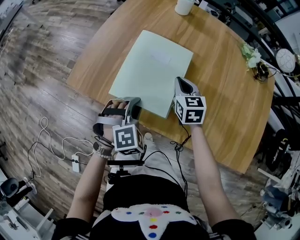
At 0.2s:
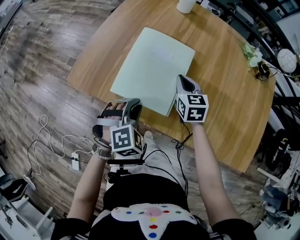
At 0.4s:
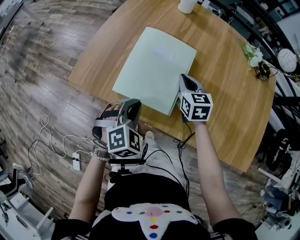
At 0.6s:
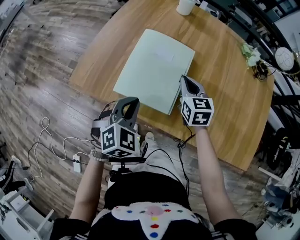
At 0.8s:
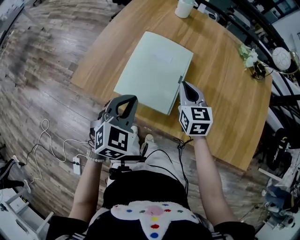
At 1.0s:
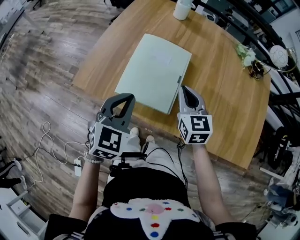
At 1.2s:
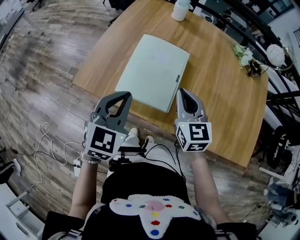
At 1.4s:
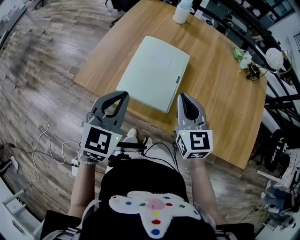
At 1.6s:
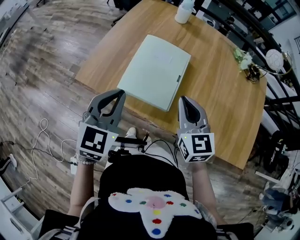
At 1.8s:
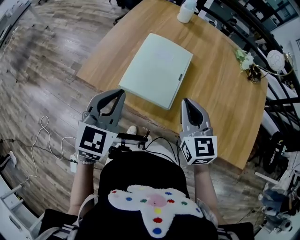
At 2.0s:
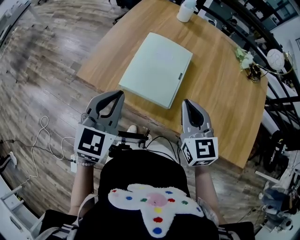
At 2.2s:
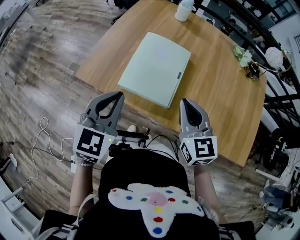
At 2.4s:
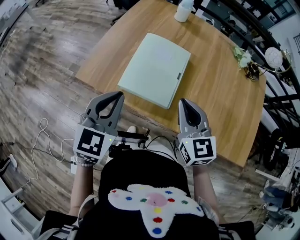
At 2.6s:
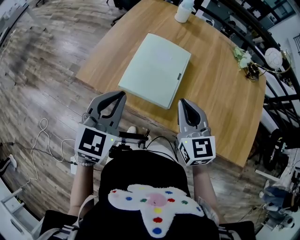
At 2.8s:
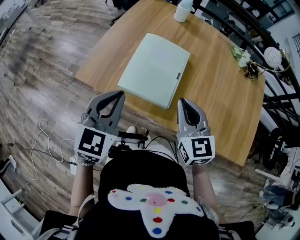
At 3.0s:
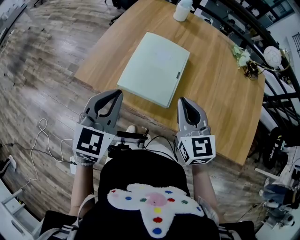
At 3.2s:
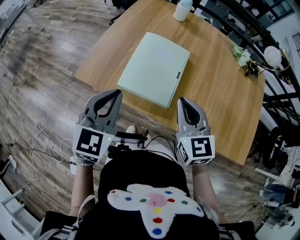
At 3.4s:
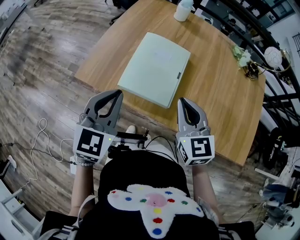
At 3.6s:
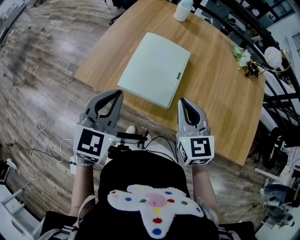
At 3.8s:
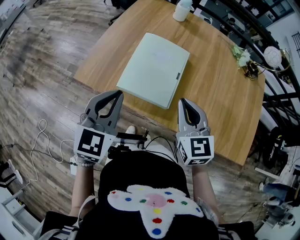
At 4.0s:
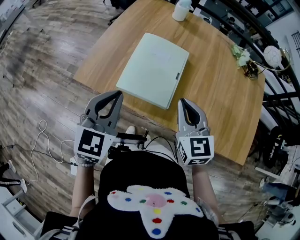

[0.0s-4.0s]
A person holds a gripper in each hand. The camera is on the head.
0.0s to 1.4s: The left gripper goes some 15 cm upward, swivels roughly 50 degrees, and closes, while the right gripper shifts approximately 20 cm upward and backward.
1.4s to 2.6s: There are only small adjustments of the grippers.
2.6s to 4.0s: Both grippers stay about where they are.

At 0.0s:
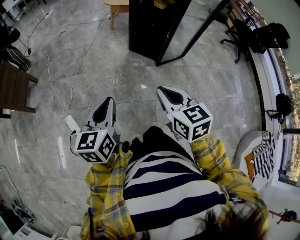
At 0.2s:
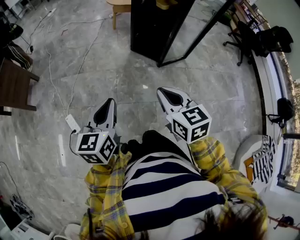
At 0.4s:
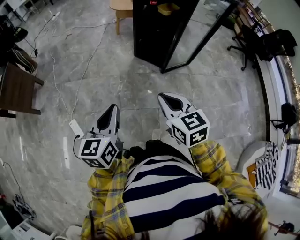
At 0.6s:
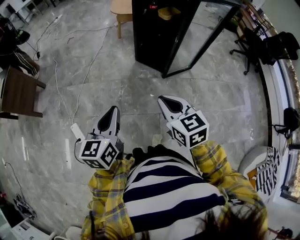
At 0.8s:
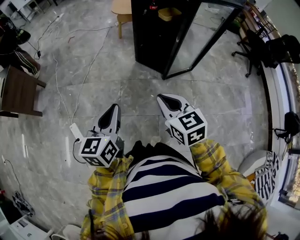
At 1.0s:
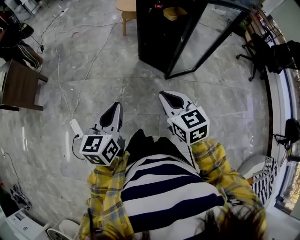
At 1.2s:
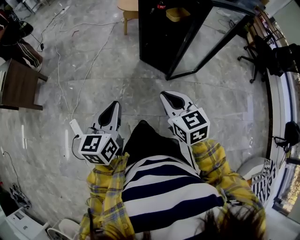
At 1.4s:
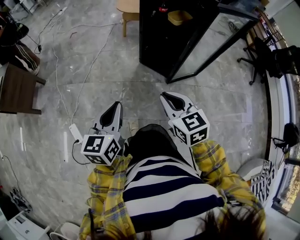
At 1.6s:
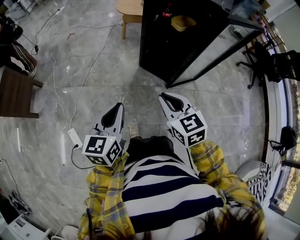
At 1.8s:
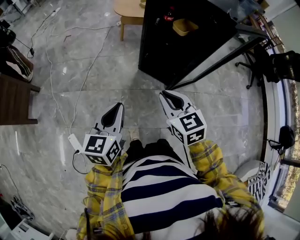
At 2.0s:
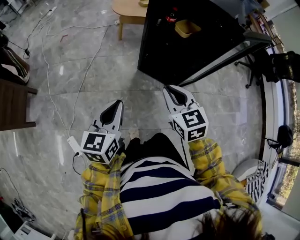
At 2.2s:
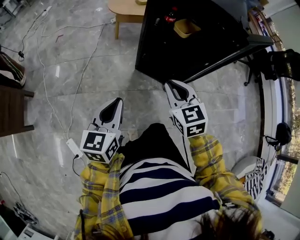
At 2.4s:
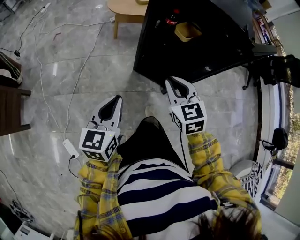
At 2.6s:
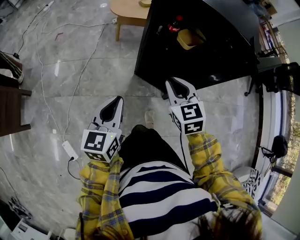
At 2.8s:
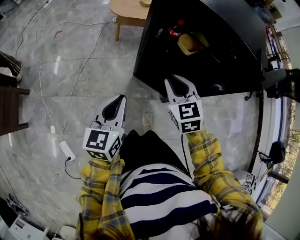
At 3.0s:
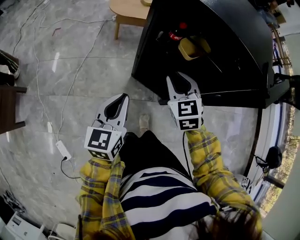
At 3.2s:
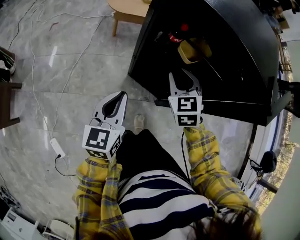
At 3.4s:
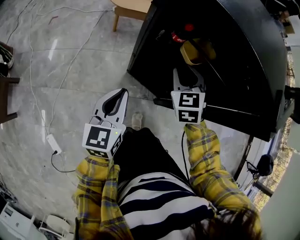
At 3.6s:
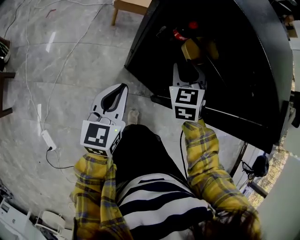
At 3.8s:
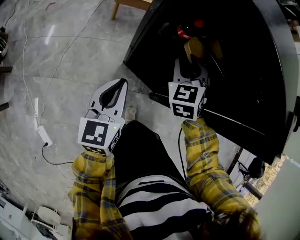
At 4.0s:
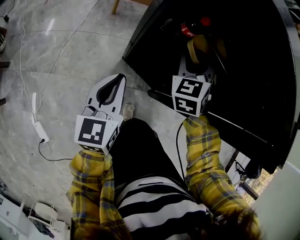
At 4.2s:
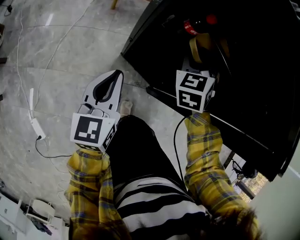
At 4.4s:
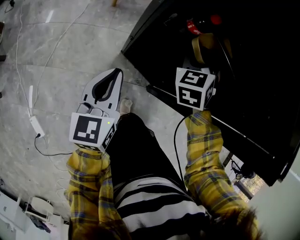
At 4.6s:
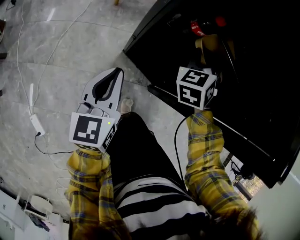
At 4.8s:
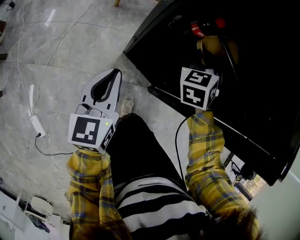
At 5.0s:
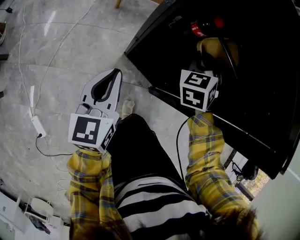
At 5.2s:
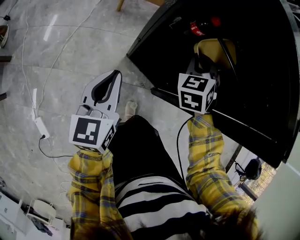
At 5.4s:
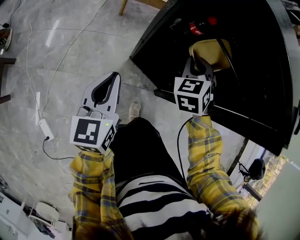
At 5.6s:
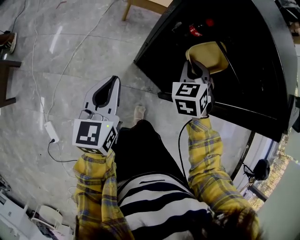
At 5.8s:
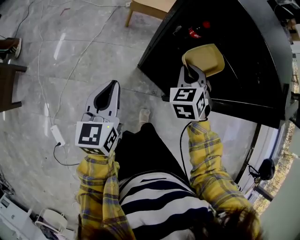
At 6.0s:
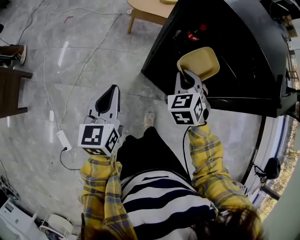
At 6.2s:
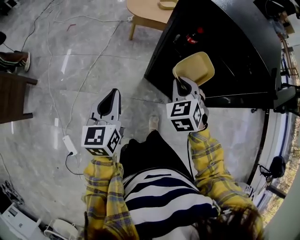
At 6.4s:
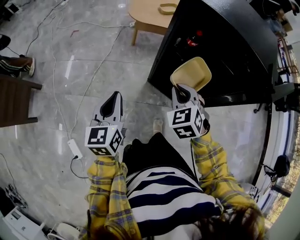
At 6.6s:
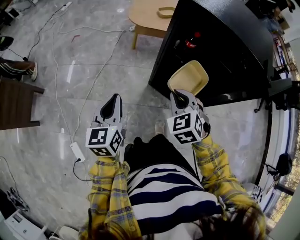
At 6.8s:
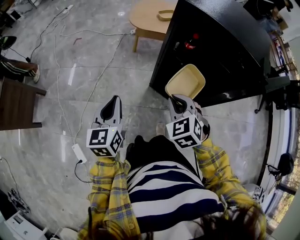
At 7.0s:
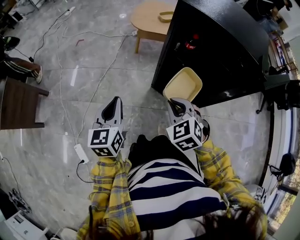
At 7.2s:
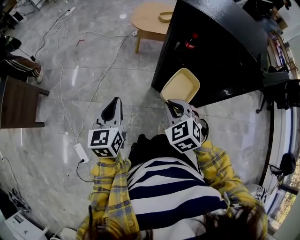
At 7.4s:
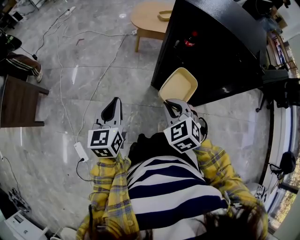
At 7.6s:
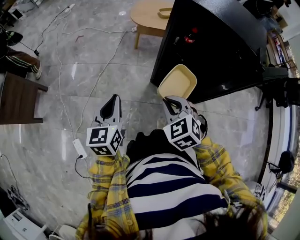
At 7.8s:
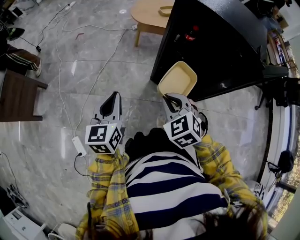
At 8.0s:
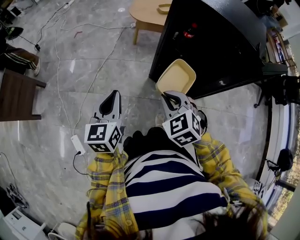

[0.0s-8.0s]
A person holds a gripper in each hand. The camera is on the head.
0.0s to 1.6s: The two grippers go about 20 cm forward.
1.6s to 3.2s: Both grippers travel together forward, some 35 cm. The right gripper rotates roughly 20 degrees.
3.2s to 4.8s: The left gripper moves downward and forward, about 10 cm, while the right gripper travels forward and downward by about 15 cm, and changes its angle by approximately 20 degrees.
4.8s to 6.4s: The left gripper heads backward, upward and to the left, covering some 20 cm, while the right gripper shifts some 25 cm backward, to the left and upward.
6.4s to 8.0s: The right gripper is displaced backward and to the left by roughly 10 cm; the left gripper travels backward by about 5 cm.

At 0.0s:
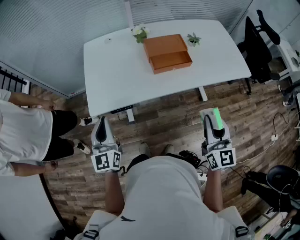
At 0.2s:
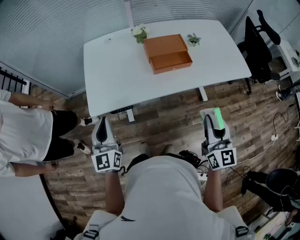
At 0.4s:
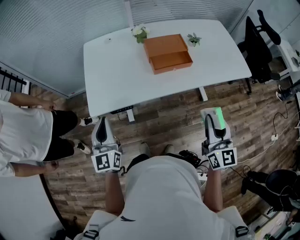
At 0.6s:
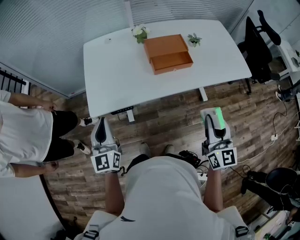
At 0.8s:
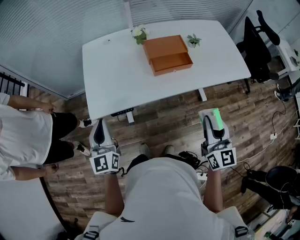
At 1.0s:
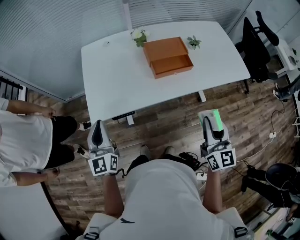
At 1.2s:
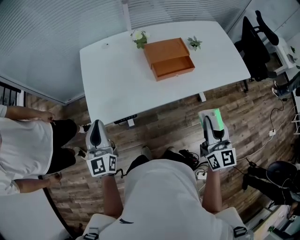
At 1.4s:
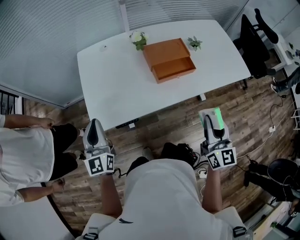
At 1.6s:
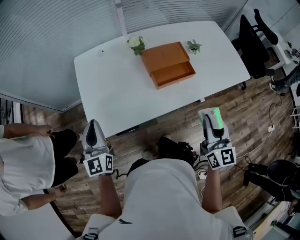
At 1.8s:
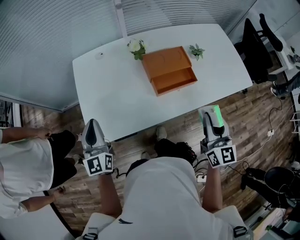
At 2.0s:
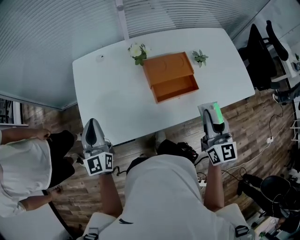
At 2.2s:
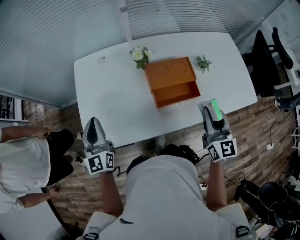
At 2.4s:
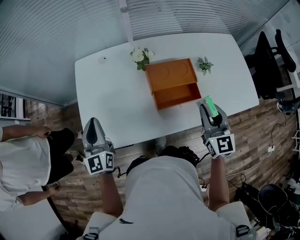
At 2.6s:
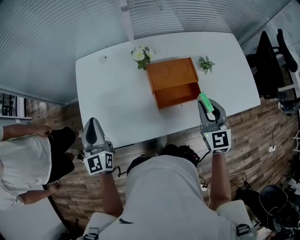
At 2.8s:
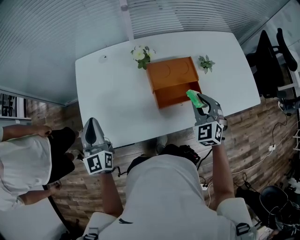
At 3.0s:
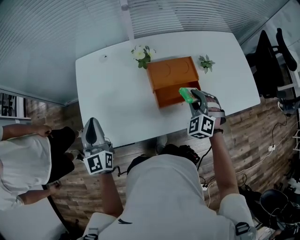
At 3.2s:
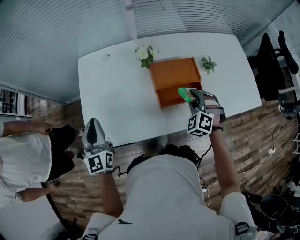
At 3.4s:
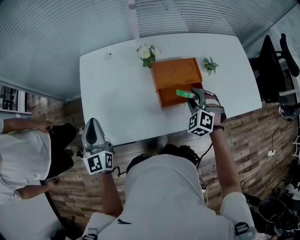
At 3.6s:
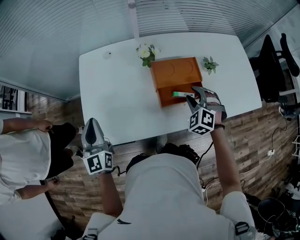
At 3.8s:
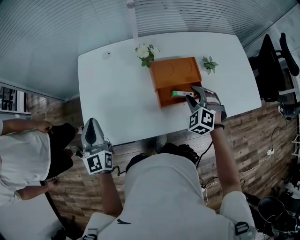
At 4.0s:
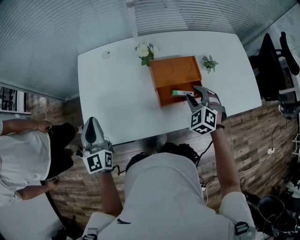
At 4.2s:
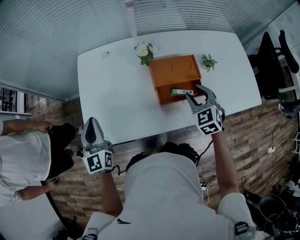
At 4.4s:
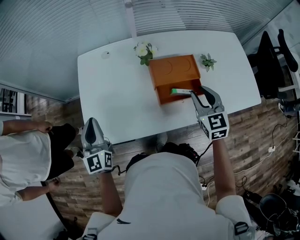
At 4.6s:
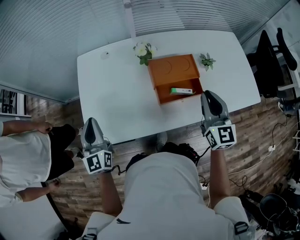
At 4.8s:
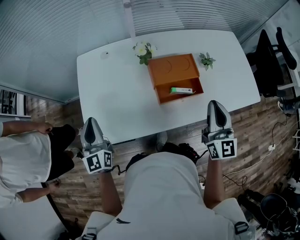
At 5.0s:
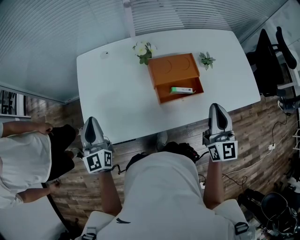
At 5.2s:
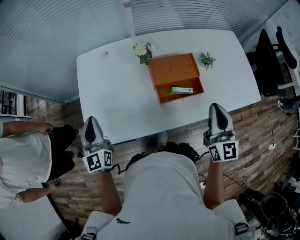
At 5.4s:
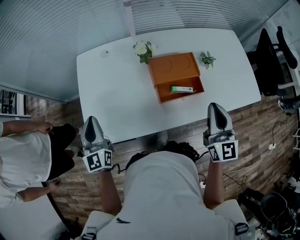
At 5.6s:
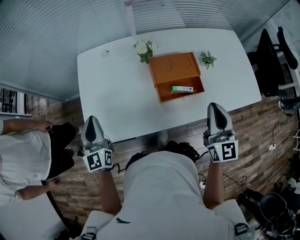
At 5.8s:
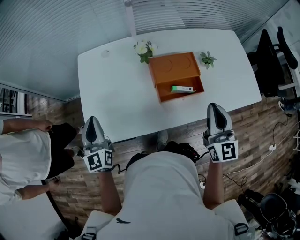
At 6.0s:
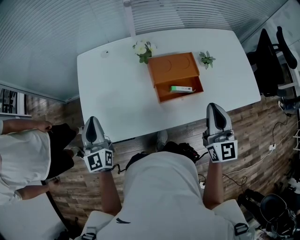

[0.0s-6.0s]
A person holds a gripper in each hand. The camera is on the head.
0.0s to 1.6s: The left gripper is displaced forward and to the left by roughly 15 cm. The right gripper goes about 10 cm forward.
1.6s to 3.0s: The right gripper is displaced forward and downward by about 25 cm, and twists some 70 degrees counterclockwise, seen from behind, while the left gripper travels forward by roughly 10 cm.
3.0s to 4.4s: The right gripper heads upward, covering approximately 5 cm, and twists some 40 degrees clockwise, seen from behind.
4.4s to 6.0s: The right gripper shifts roughly 10 cm backward and upward, rotates roughly 30 degrees, and closes its fingers.

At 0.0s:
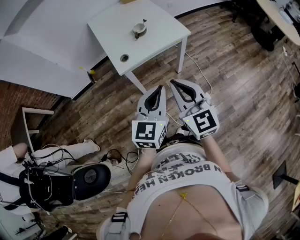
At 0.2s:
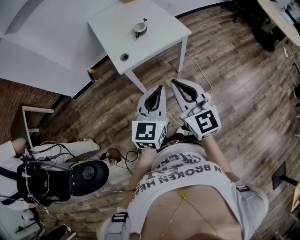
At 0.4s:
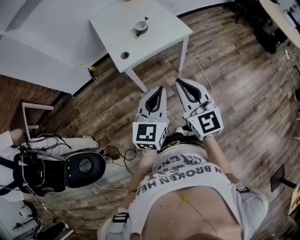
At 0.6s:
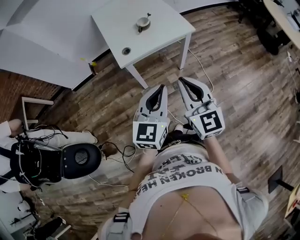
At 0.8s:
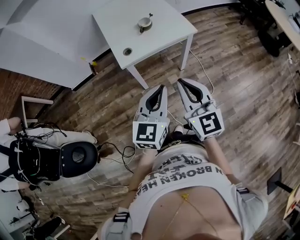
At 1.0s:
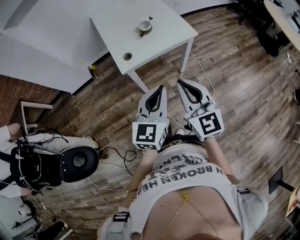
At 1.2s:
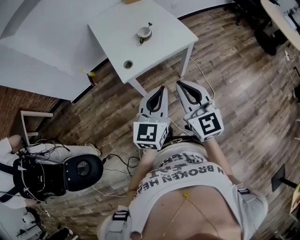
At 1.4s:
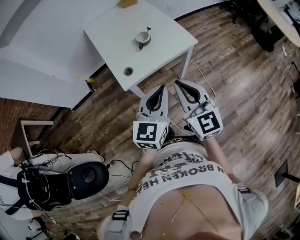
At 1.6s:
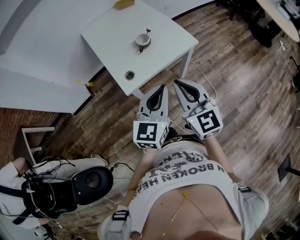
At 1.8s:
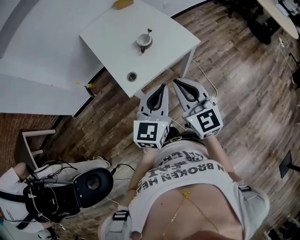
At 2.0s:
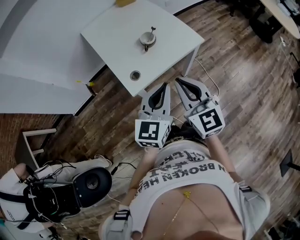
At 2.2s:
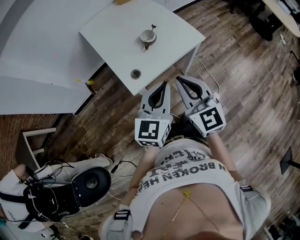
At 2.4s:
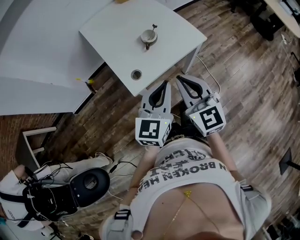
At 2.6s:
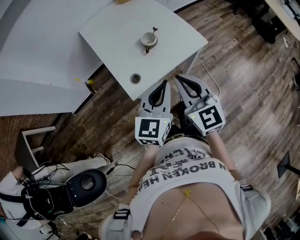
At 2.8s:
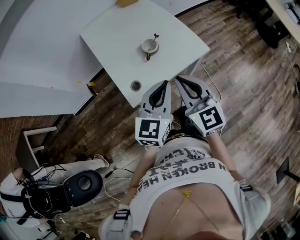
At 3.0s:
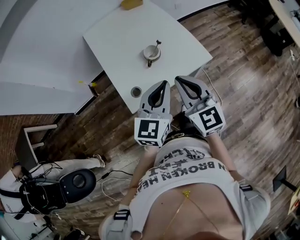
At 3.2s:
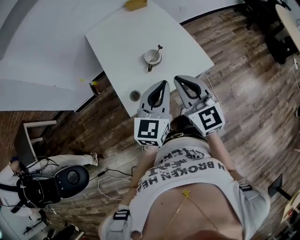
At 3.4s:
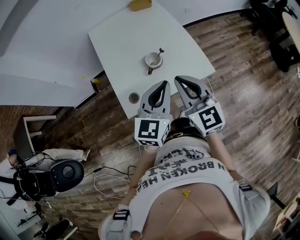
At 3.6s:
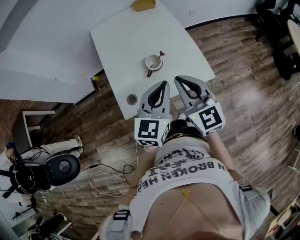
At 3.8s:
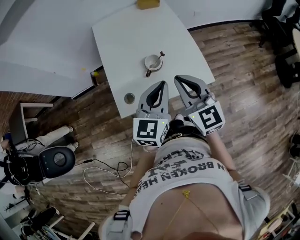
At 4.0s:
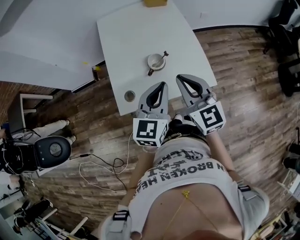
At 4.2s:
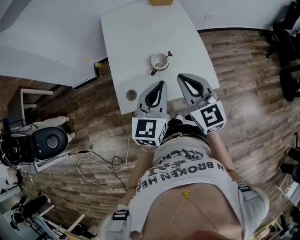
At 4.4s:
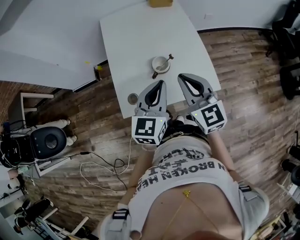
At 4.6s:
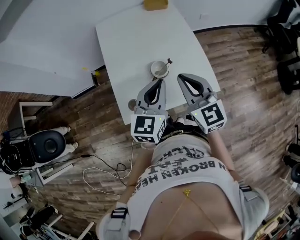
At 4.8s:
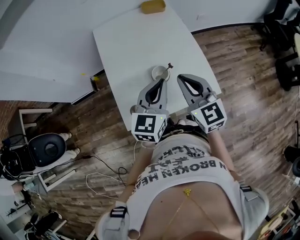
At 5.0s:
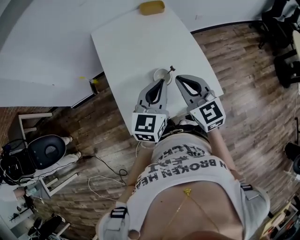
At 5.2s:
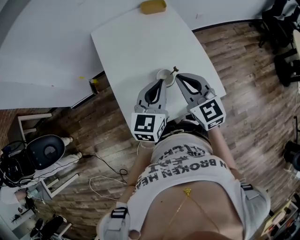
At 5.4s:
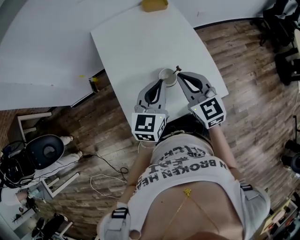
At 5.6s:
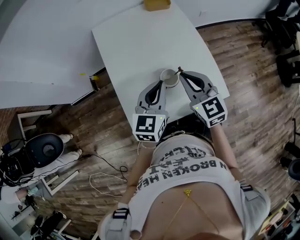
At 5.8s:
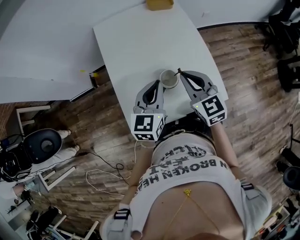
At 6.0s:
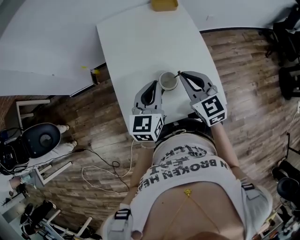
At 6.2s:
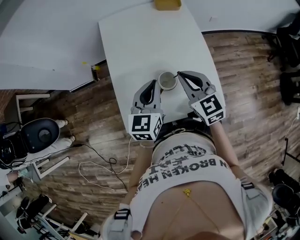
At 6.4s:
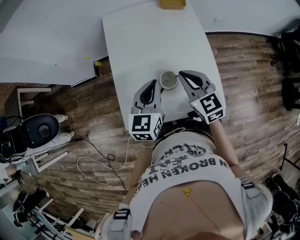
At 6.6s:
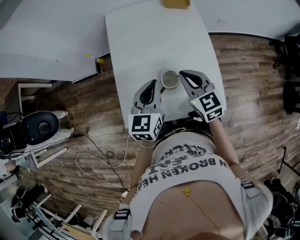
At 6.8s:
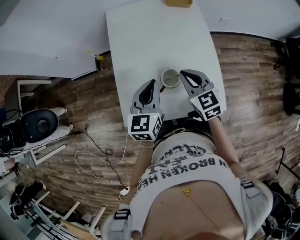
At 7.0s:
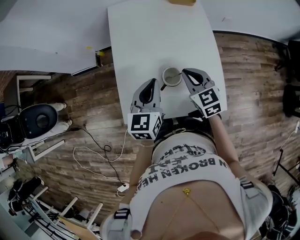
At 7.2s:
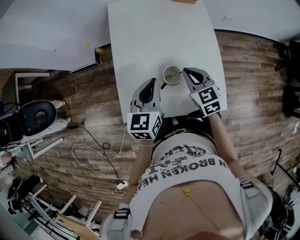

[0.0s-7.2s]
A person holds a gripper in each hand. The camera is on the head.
0.0s to 1.4s: Both grippers move forward, approximately 15 cm.
1.4s to 2.8s: The grippers both shift forward by roughly 15 cm.
2.8s to 4.4s: The two grippers go some 15 cm forward. The left gripper swivels approximately 20 degrees.
4.4s to 5.8s: The right gripper shifts roughly 15 cm forward and downward. The left gripper moves forward and to the left, some 15 cm.
5.8s to 7.2s: The right gripper shifts about 10 cm downward and forward.
